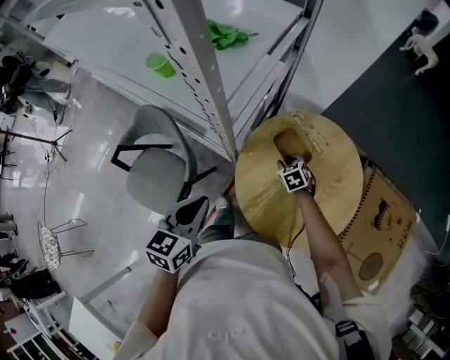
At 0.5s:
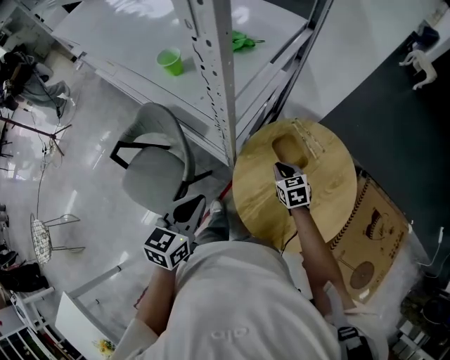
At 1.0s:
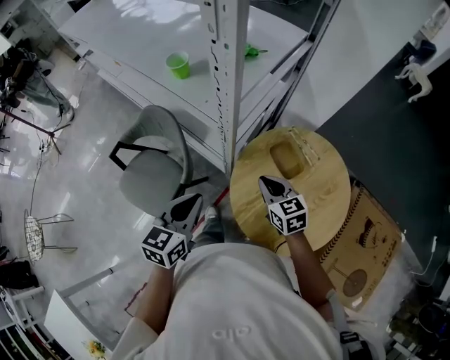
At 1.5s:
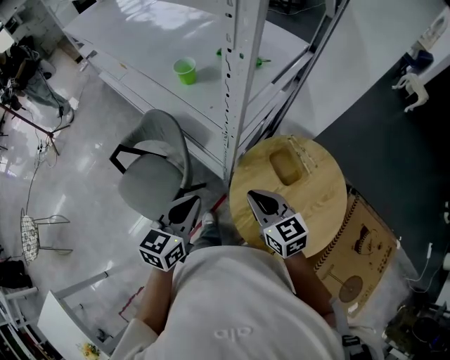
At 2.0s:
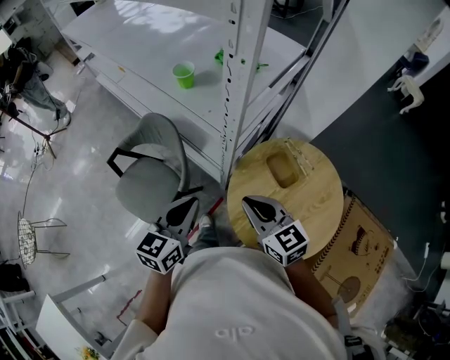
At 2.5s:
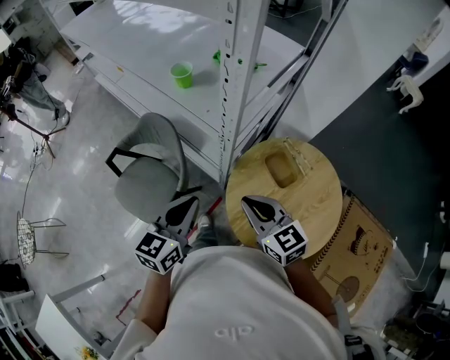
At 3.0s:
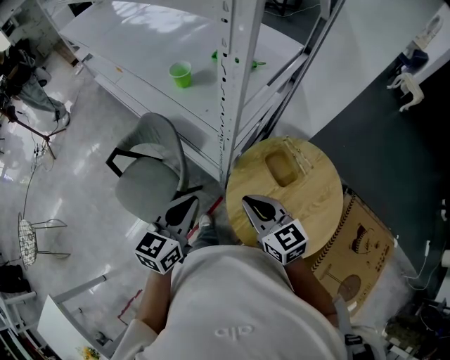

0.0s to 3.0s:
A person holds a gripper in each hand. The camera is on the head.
0.0s to 1.5s: The right gripper moves upward, to the left and backward, some 35 cm, tilts its fingers roughly 30 degrees upward, and closes up. Meanwhile the left gripper ends up some 5 cm from where it was.
1.5s to 3.0s: The grippers move only a little.

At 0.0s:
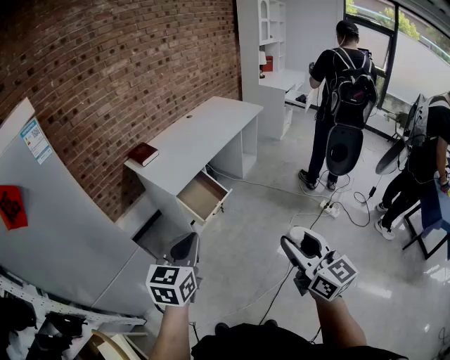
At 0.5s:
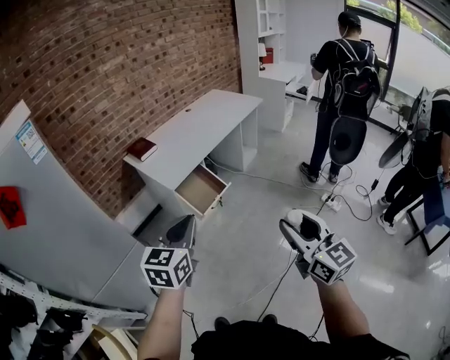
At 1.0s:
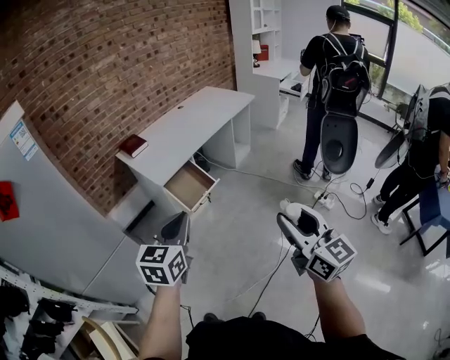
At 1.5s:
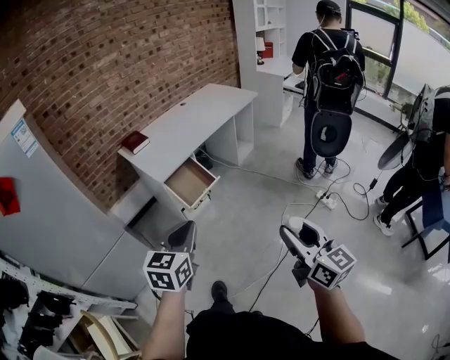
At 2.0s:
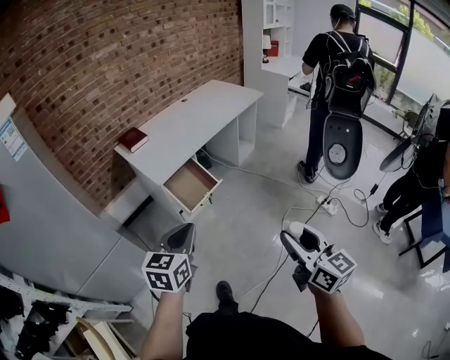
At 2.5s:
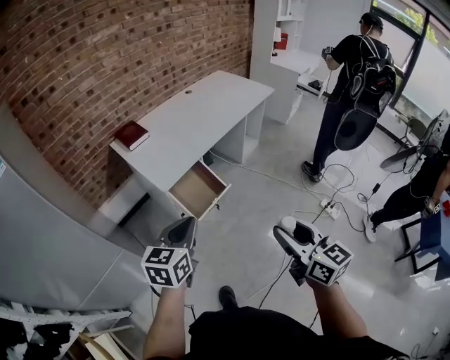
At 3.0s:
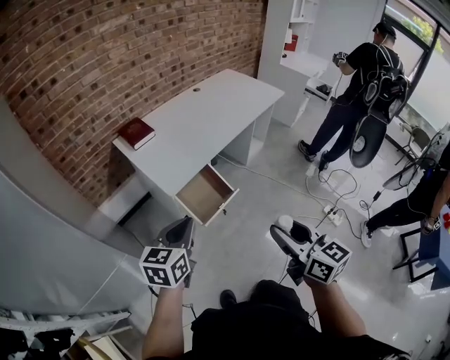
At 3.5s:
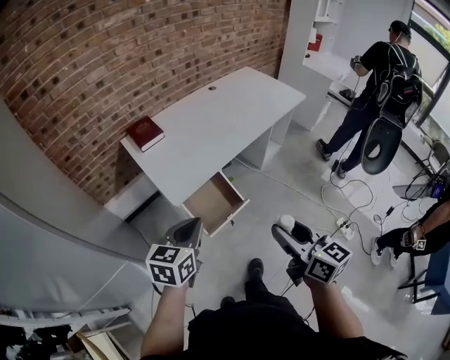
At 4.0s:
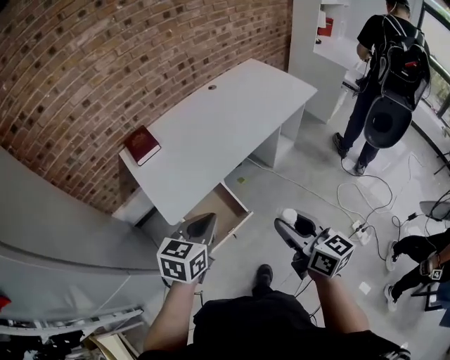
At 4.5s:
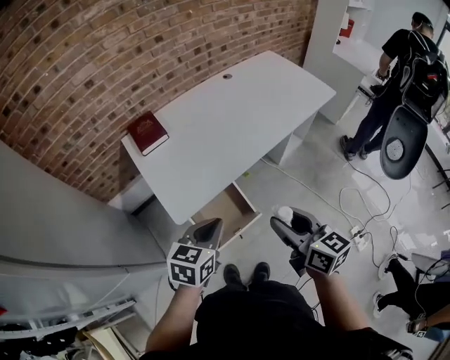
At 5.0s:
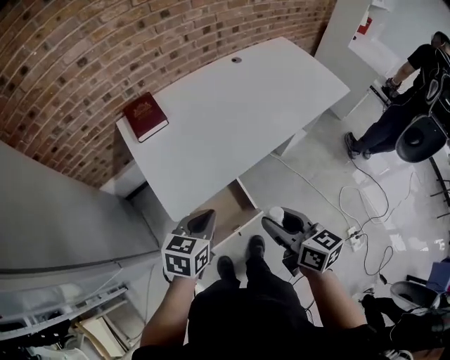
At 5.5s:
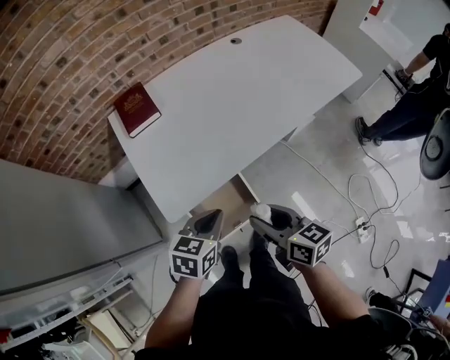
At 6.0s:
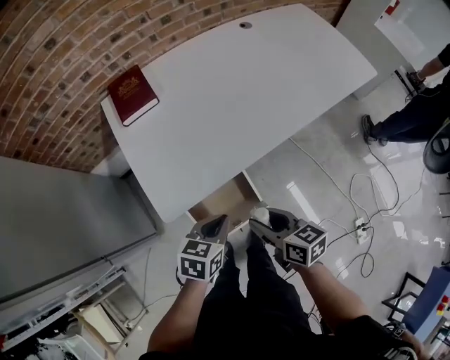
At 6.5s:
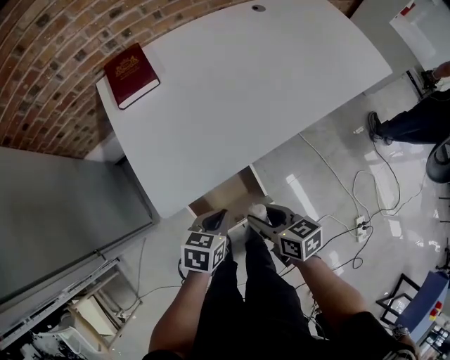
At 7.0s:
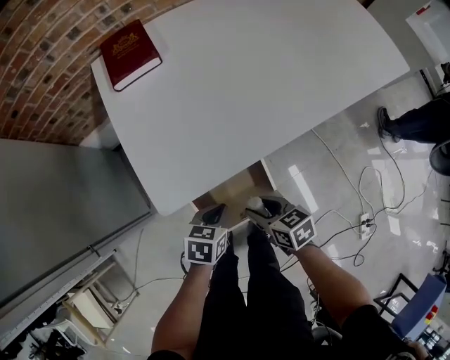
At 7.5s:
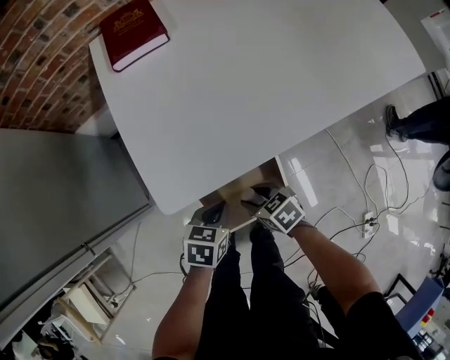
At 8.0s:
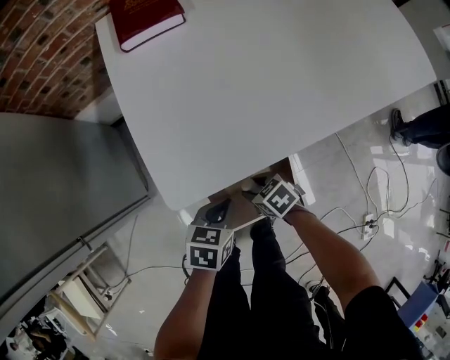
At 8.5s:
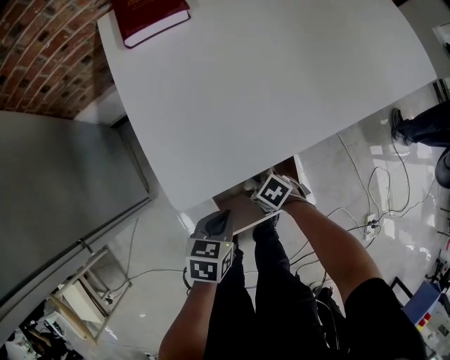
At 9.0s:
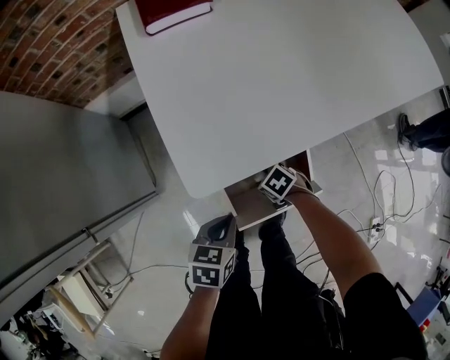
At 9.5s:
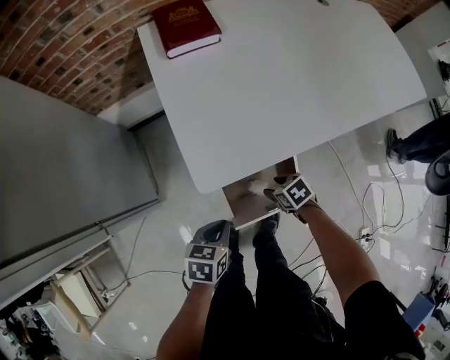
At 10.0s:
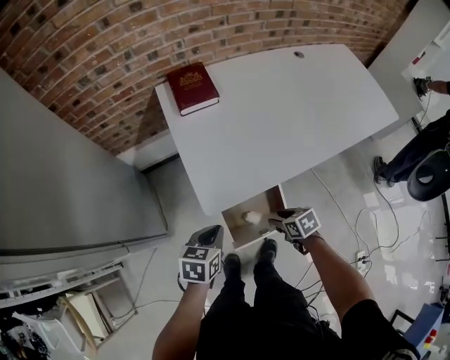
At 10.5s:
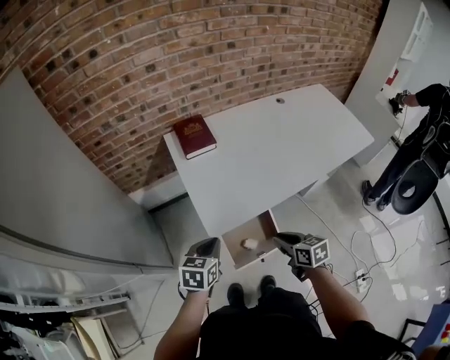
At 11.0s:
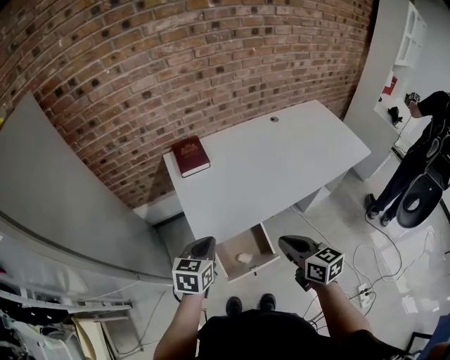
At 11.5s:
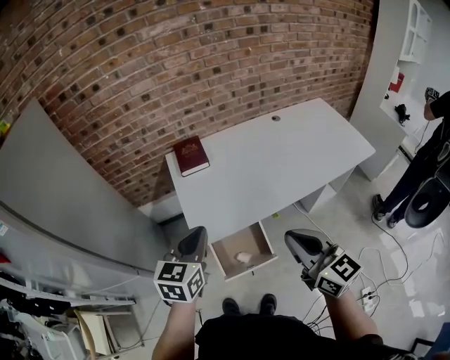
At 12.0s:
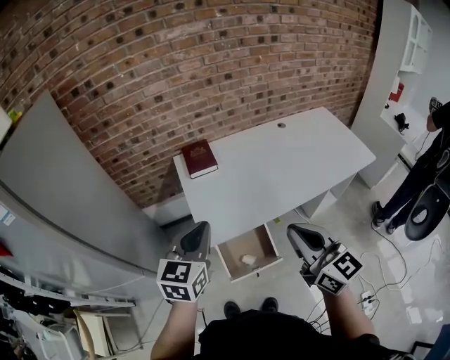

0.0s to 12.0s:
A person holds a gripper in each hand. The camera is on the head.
0.0s to 2.0s: The left gripper is displaced to the right, downward and forward by some 10 cm. The right gripper is displaced to the right and forward by some 10 cm.
2.0s to 4.0s: Both grippers move forward, some 40 cm.
4.0s to 6.0s: The right gripper heads downward, forward and to the left, covering roughly 30 cm, and turns by some 30 degrees, while the left gripper travels downward and forward by roughly 25 cm, and swivels approximately 20 degrees.
6.0s to 8.0s: The right gripper is displaced downward by some 30 cm, and rotates approximately 50 degrees. Meanwhile the left gripper travels downward by some 20 cm.
8.0s to 10.0s: Both grippers travel together upward, about 15 cm.
10.0s to 12.0s: The two grippers go some 40 cm upward. The left gripper changes its angle by approximately 40 degrees. The right gripper angles its fingers upward, by about 60 degrees, and closes up.

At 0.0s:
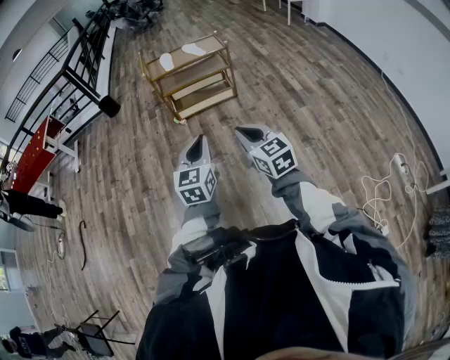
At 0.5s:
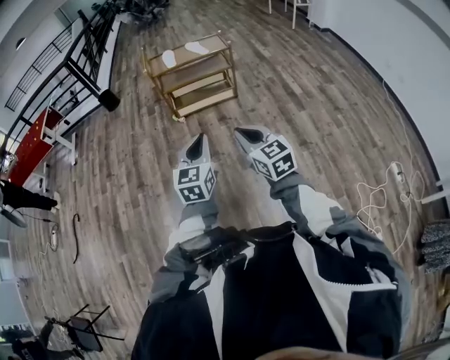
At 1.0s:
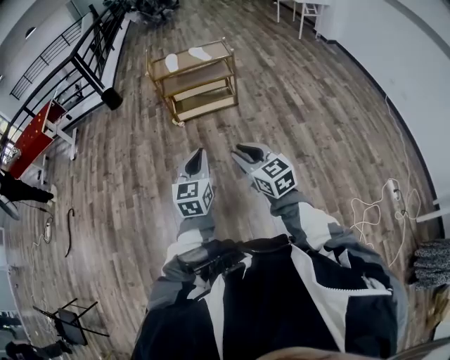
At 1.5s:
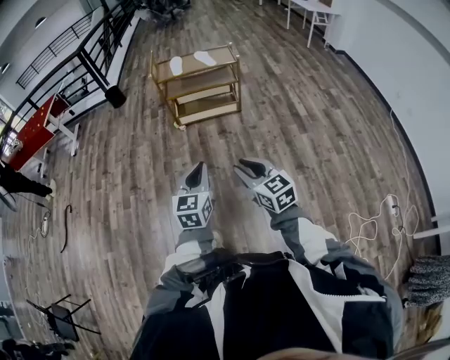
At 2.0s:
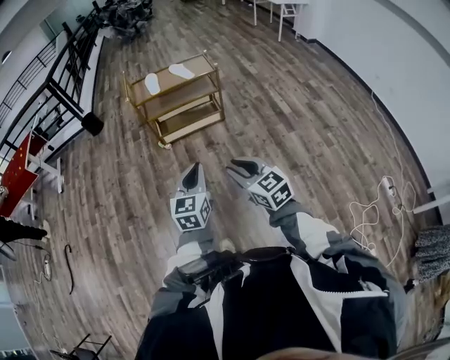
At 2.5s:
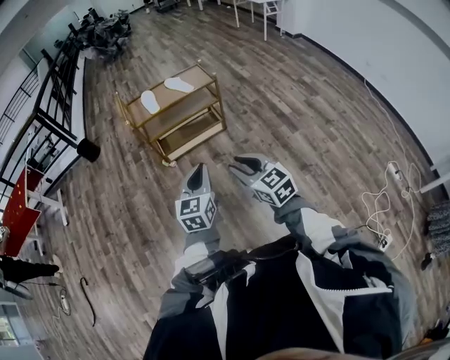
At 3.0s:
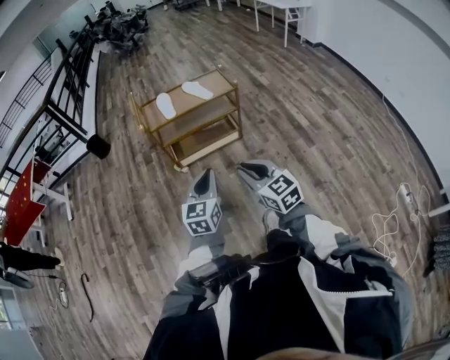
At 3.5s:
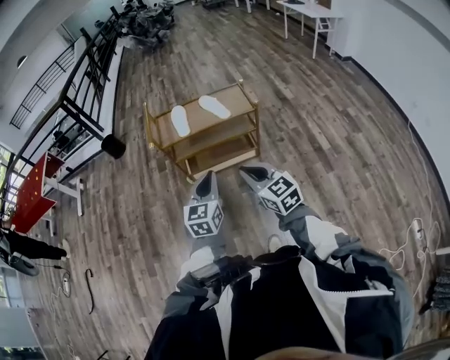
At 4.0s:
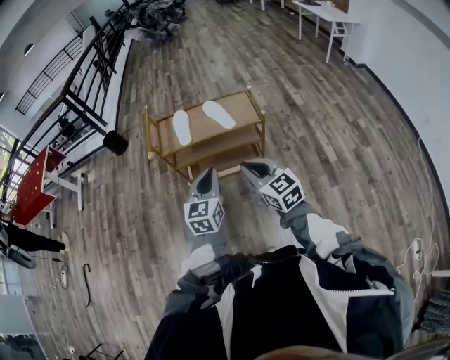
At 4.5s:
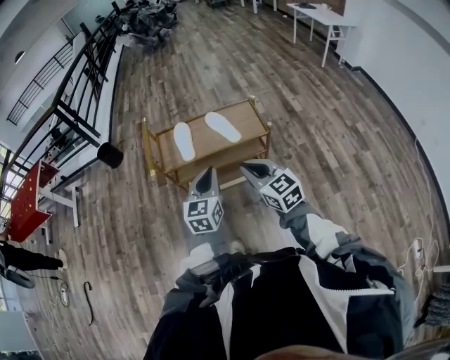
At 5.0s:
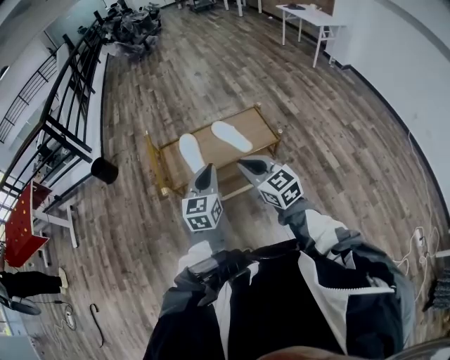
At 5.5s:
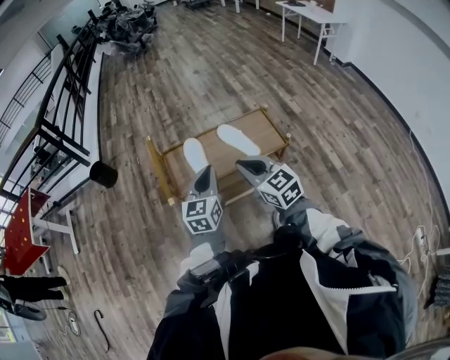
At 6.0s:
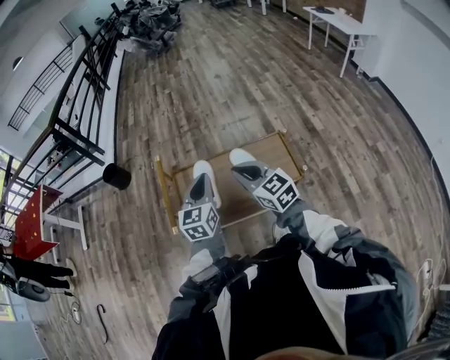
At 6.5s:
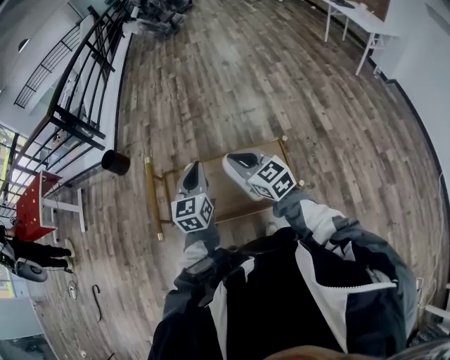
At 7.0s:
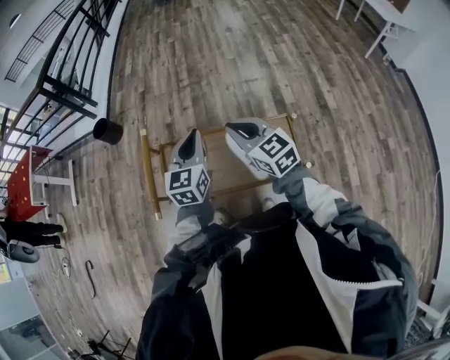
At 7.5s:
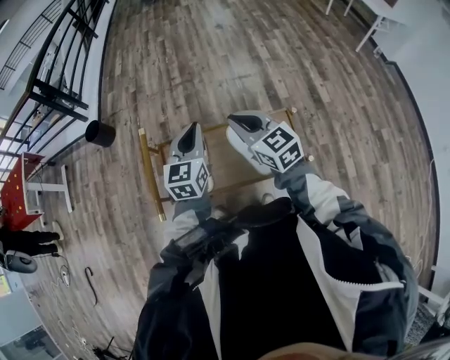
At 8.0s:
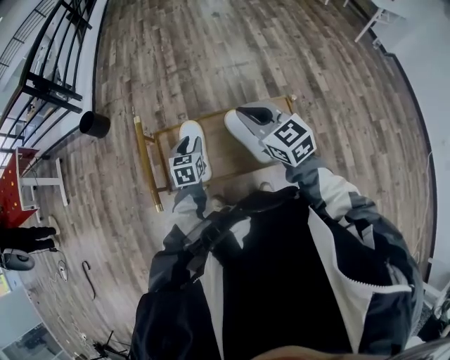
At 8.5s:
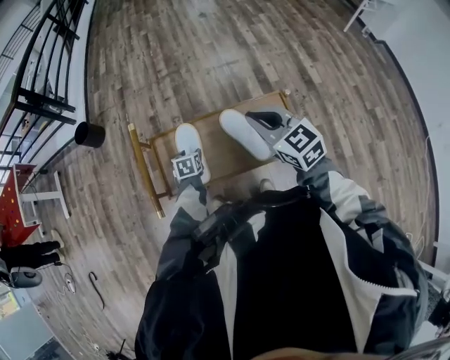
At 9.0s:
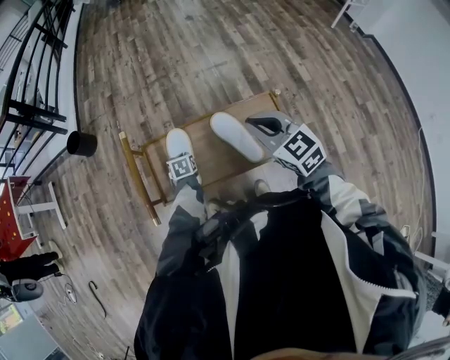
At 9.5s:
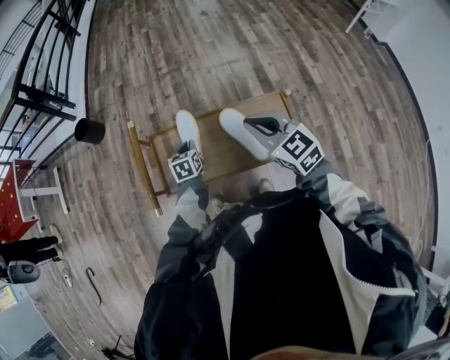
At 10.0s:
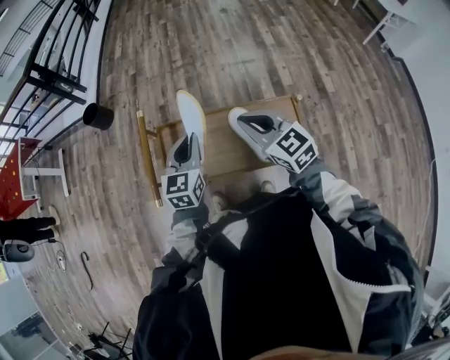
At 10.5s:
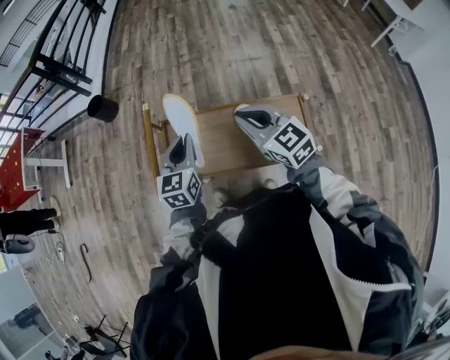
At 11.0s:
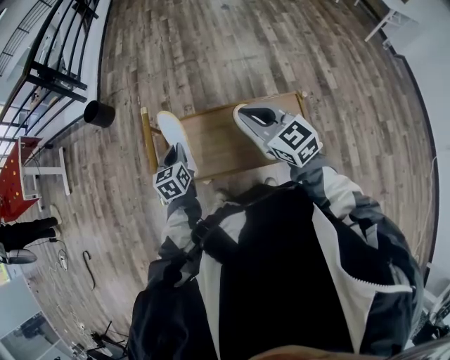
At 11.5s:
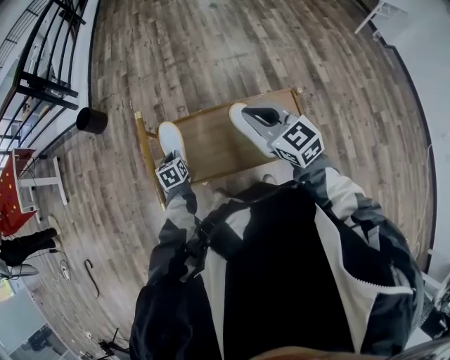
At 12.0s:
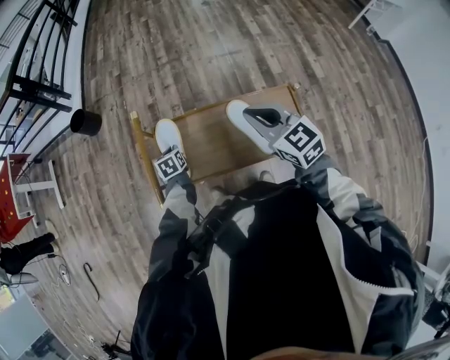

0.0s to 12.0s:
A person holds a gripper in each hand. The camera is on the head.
0.0s to 2.0s: Both grippers travel together forward, about 10 cm.
2.0s to 4.0s: The two grippers travel together, forward, approximately 50 cm.
4.0s to 6.0s: The two grippers travel together, forward, approximately 40 cm.
6.0s to 8.0s: The left gripper is displaced downward and forward by roughly 25 cm, rotates roughly 30 degrees, and opens. Meanwhile the right gripper is displaced forward and to the right by roughly 15 cm.
8.0s to 10.0s: The left gripper heads upward, covering some 15 cm, rotates roughly 20 degrees, and closes its fingers.
10.0s to 12.0s: The left gripper moves downward and to the left, about 30 cm, and points its fingers some 30 degrees further downward.
